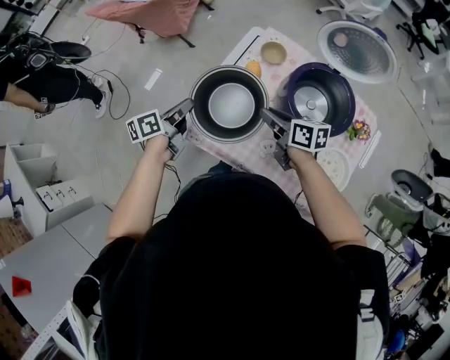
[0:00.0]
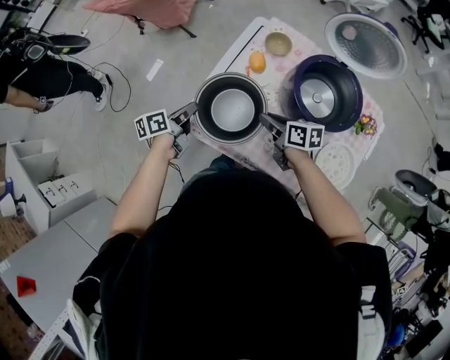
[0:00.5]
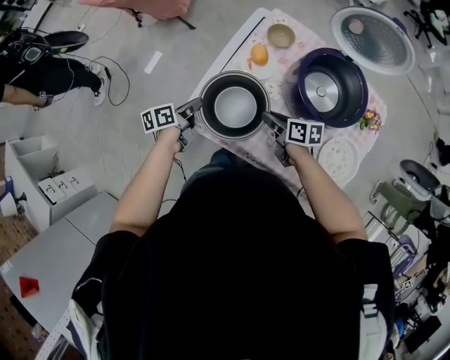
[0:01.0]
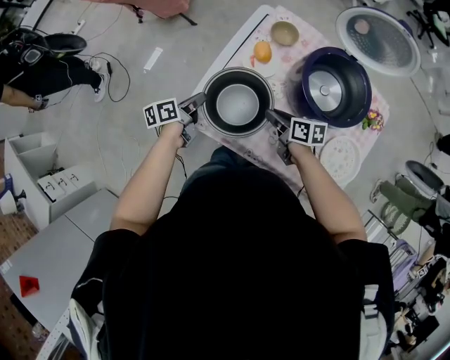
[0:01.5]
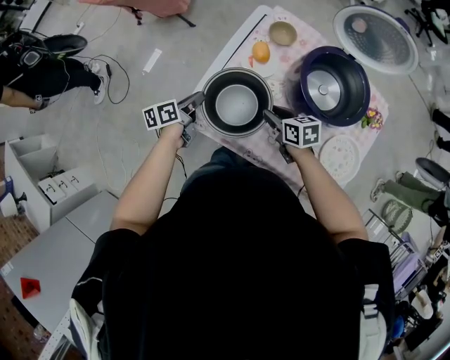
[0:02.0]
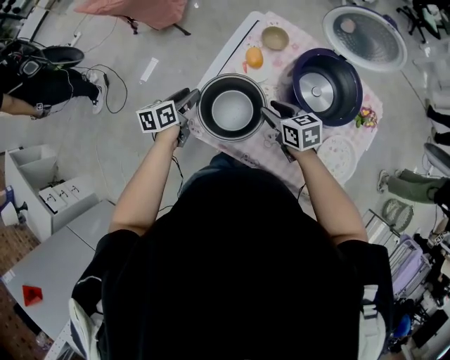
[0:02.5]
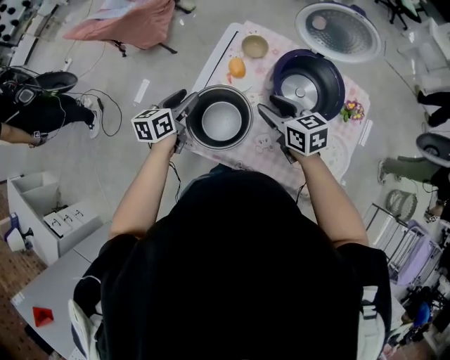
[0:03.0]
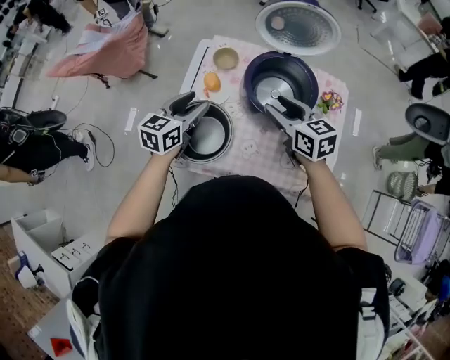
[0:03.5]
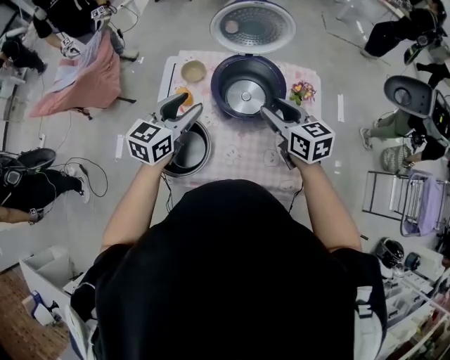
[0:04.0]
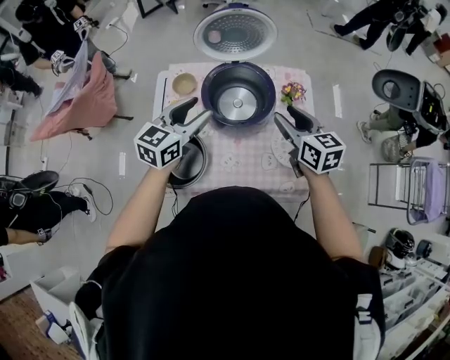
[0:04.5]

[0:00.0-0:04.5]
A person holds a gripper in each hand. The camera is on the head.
0:00.0 to 0:02.0: The two grippers go approximately 10 cm downward.
0:02.0 to 0:04.5: The right gripper ends up approximately 35 cm from where it was, and swivels approximately 50 degrees, while the left gripper shifts by about 40 cm, rolls clockwise, seen from behind, by approximately 60 degrees, and opens its fingers.

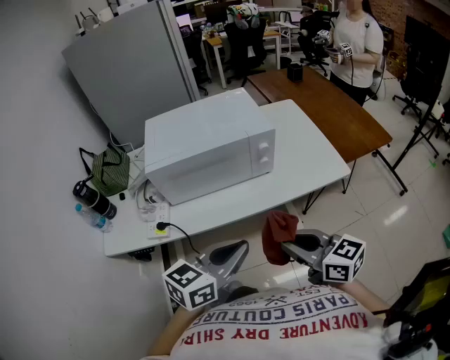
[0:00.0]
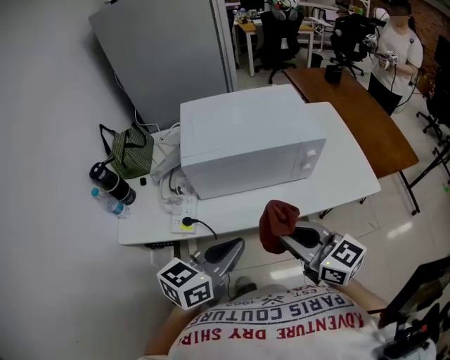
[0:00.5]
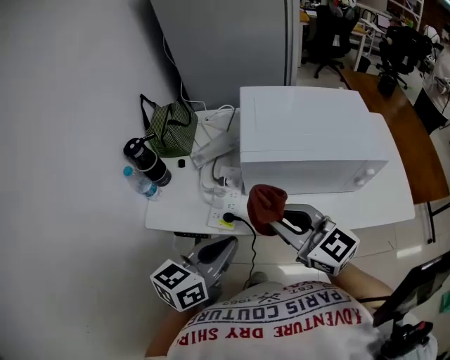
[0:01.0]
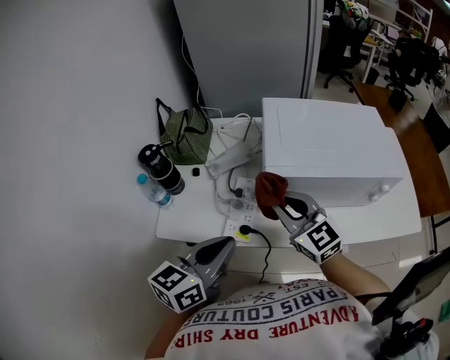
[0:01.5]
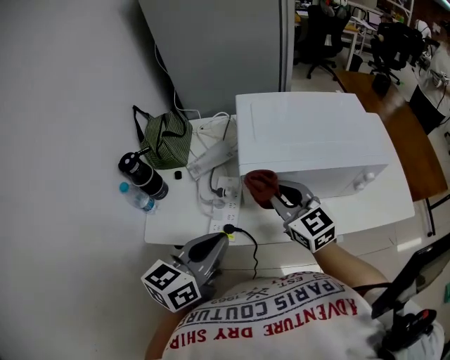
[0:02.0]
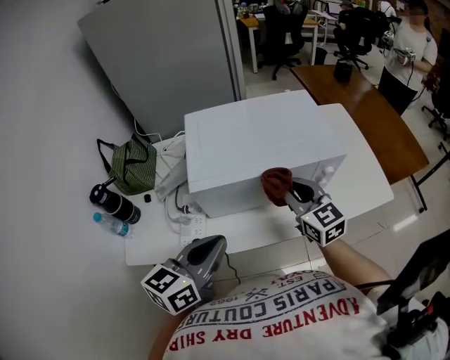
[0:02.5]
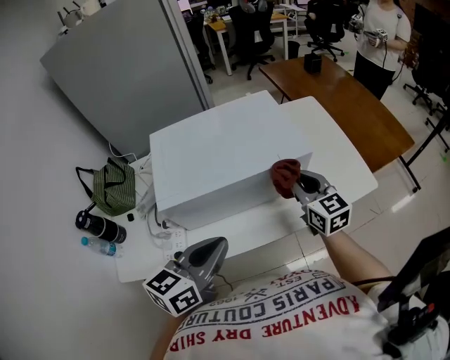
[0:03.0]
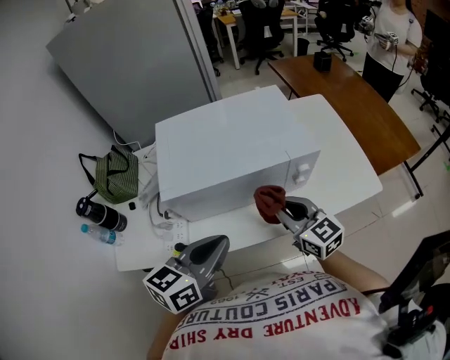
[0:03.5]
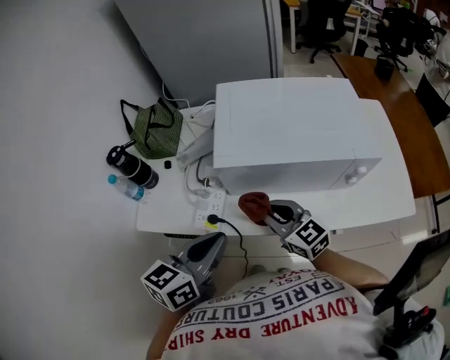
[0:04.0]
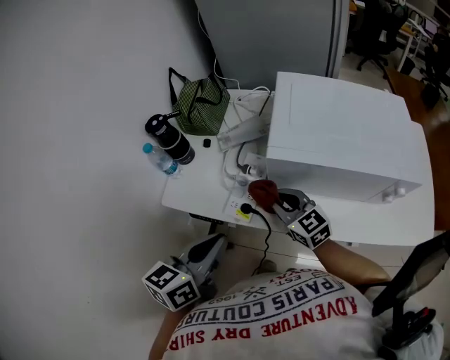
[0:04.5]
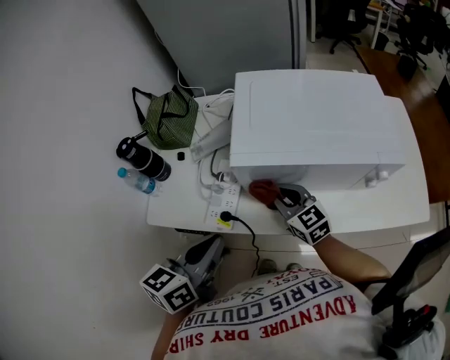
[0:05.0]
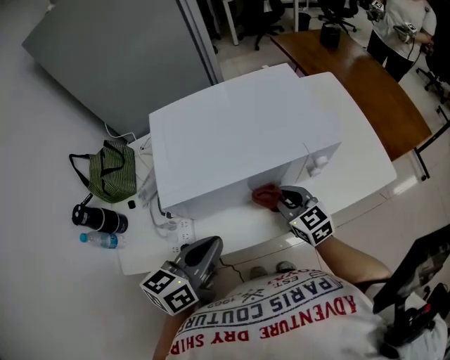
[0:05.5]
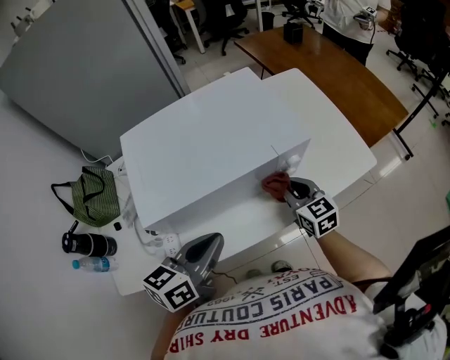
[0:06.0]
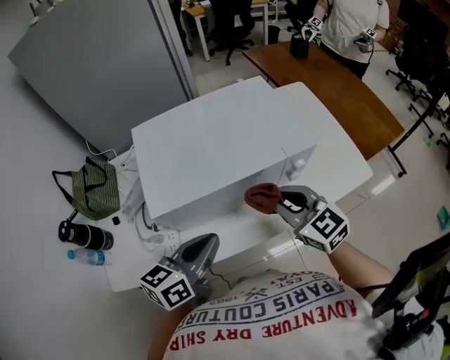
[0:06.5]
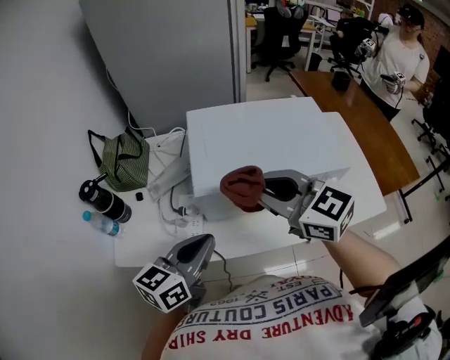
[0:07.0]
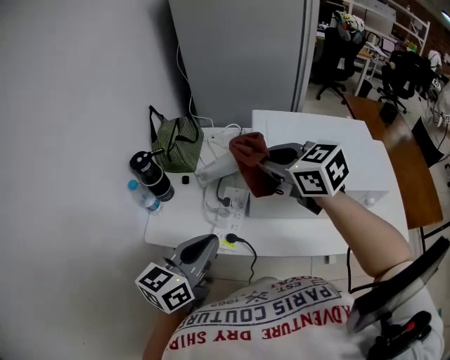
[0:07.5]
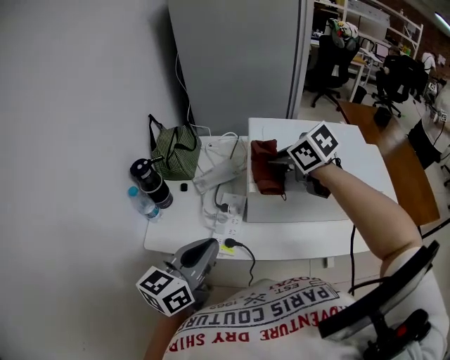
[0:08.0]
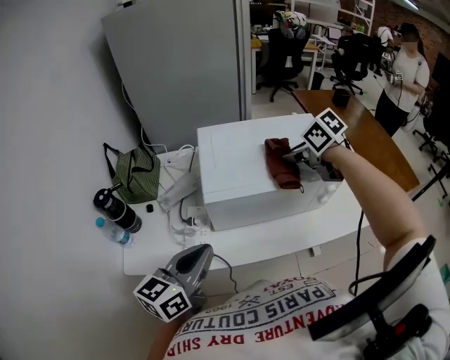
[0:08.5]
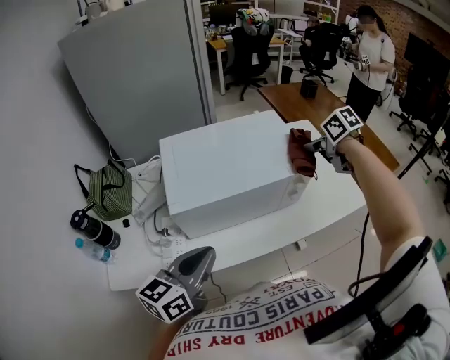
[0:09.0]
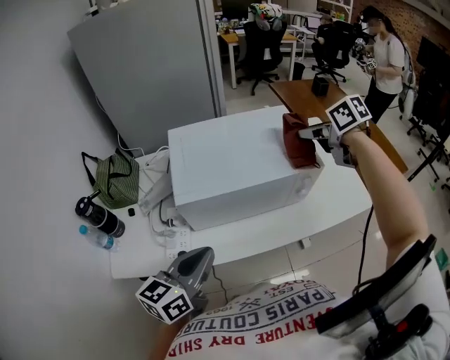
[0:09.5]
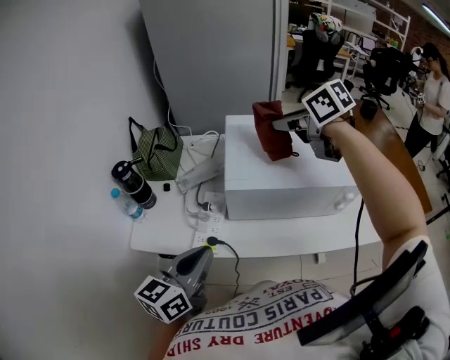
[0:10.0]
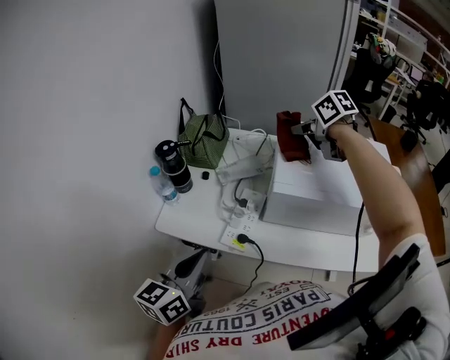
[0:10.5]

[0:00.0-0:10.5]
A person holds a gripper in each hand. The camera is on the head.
0:00.0 to 0:02.0: The right gripper shifts about 40 cm forward and to the left, and changes its angle by some 20 degrees. Meanwhile the left gripper shifts some 30 cm to the left and forward, and changes its angle by roughly 20 degrees.
0:02.0 to 0:04.0: The right gripper goes some 10 cm downward.
0:04.0 to 0:06.5: The left gripper changes place by some 15 cm, and rotates approximately 20 degrees. Meanwhile the right gripper moves approximately 20 cm, and rotates about 20 degrees.
0:06.5 to 0:08.5: The right gripper swivels roughly 40 degrees.
0:08.5 to 0:10.5: The right gripper goes upward and returns, roughly 10 cm each way. Meanwhile the left gripper shifts by roughly 15 cm, and changes its angle by some 30 degrees.

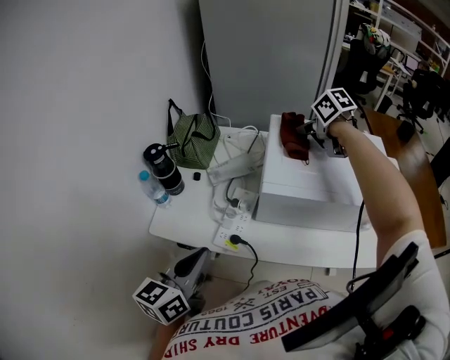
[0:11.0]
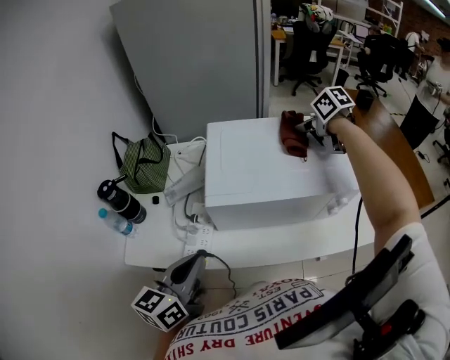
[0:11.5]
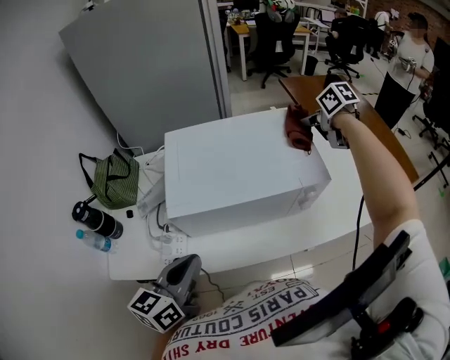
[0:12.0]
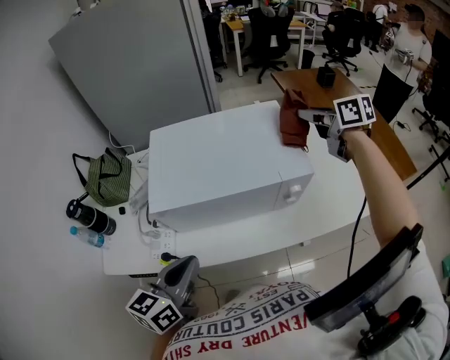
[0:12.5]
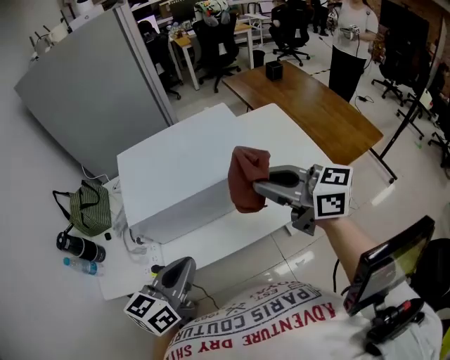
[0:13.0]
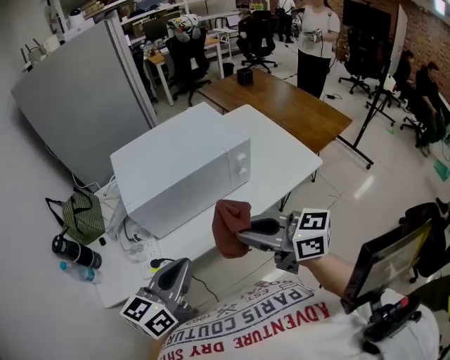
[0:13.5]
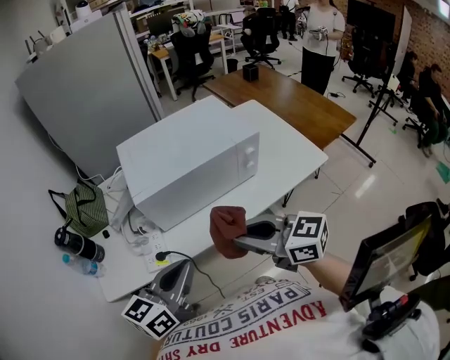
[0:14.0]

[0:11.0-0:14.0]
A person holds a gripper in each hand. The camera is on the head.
0:11.0 to 0:12.5: The left gripper shifts roughly 20 cm to the right. The right gripper goes approximately 35 cm to the right, and changes its angle by approximately 40 degrees.
0:12.5 to 0:14.0: The left gripper is displaced backward by roughly 10 cm, and turns by approximately 20 degrees. The right gripper shifts roughly 50 cm backward and to the left.

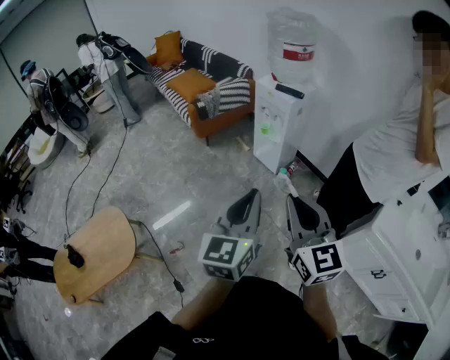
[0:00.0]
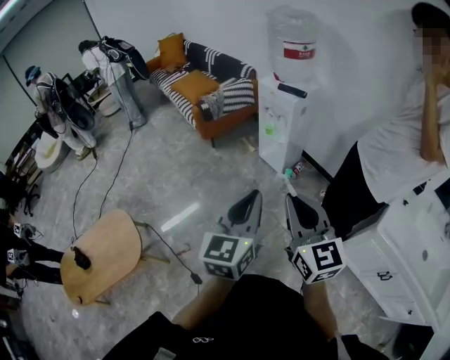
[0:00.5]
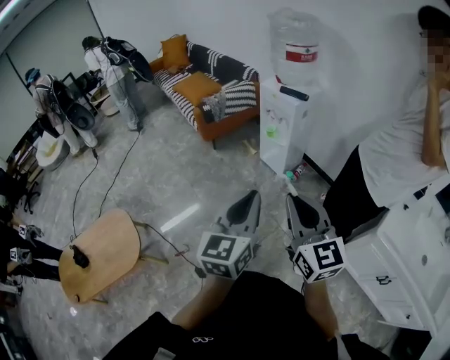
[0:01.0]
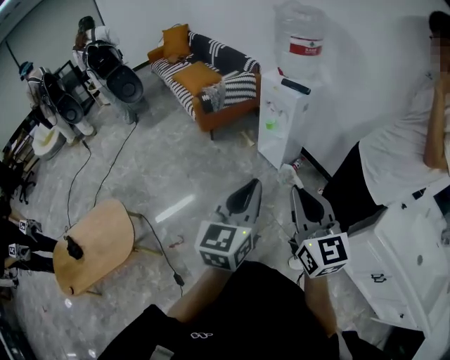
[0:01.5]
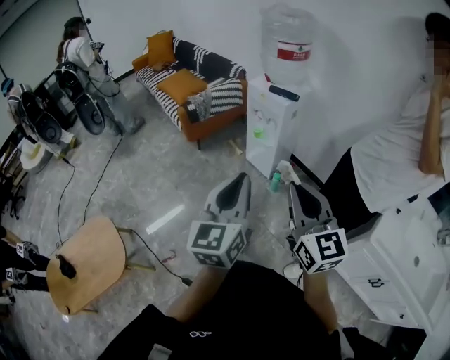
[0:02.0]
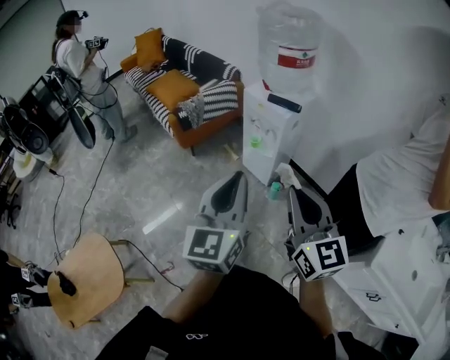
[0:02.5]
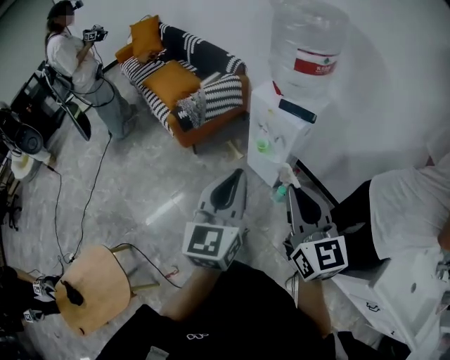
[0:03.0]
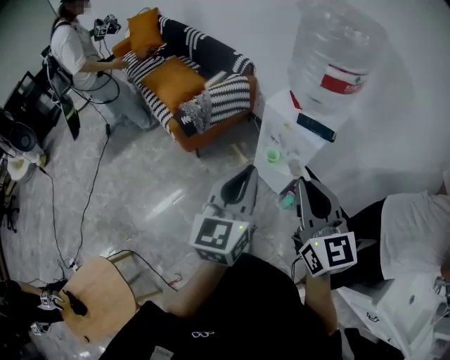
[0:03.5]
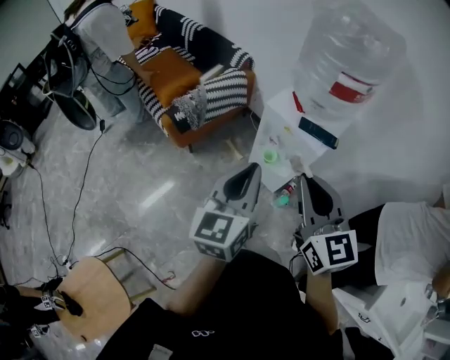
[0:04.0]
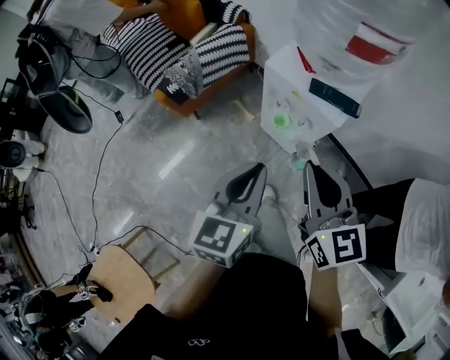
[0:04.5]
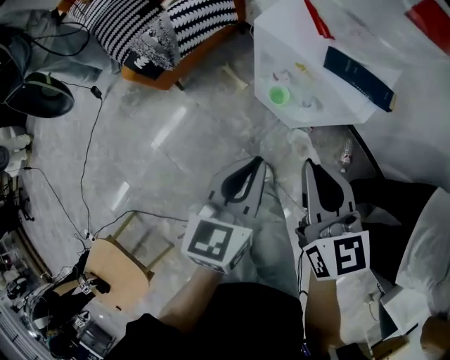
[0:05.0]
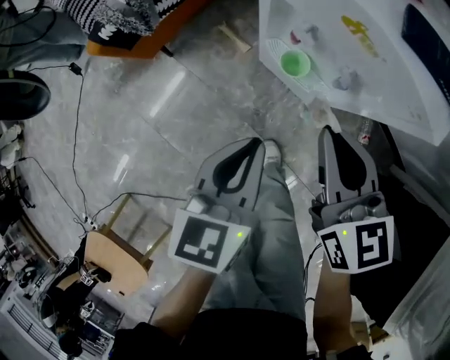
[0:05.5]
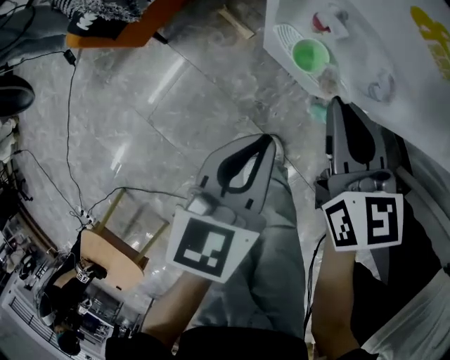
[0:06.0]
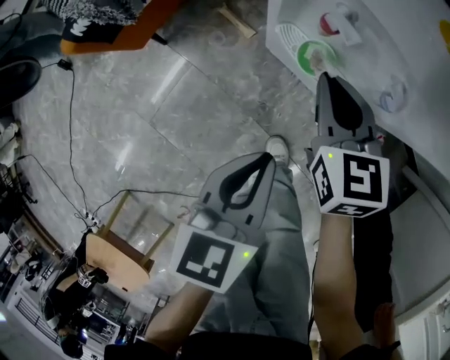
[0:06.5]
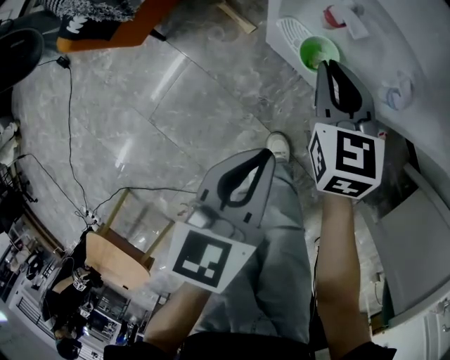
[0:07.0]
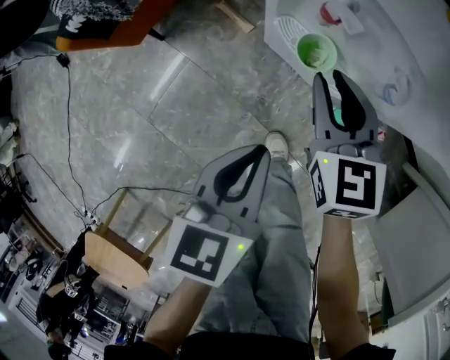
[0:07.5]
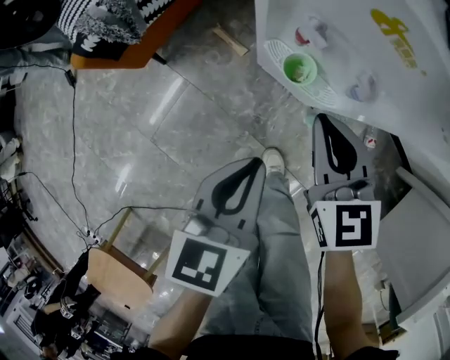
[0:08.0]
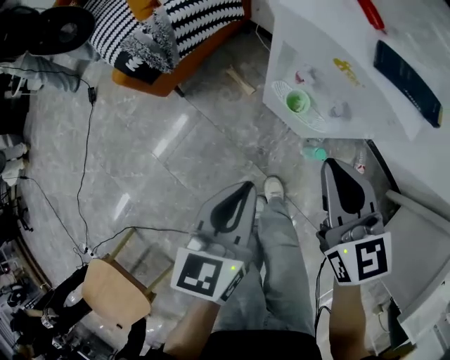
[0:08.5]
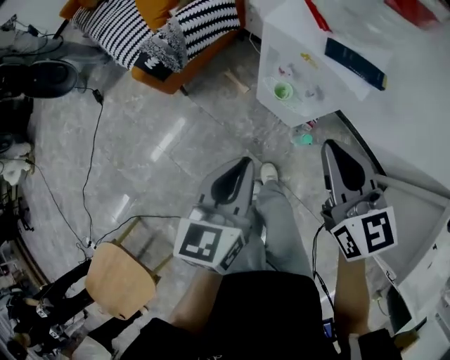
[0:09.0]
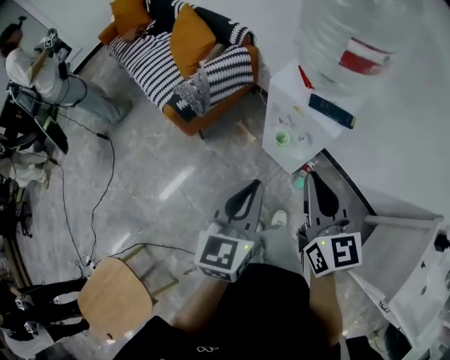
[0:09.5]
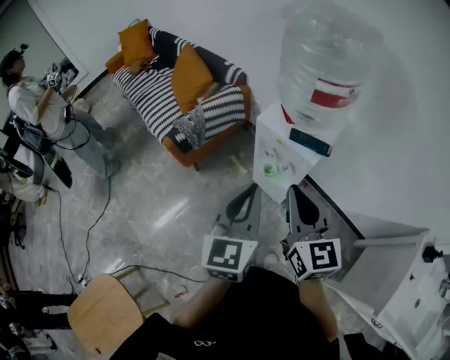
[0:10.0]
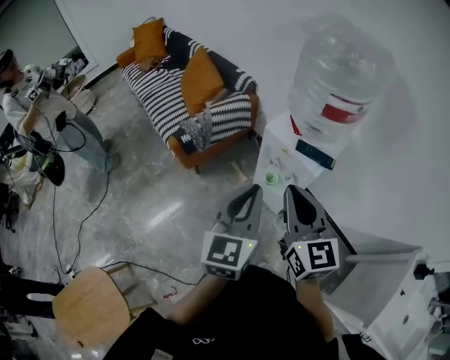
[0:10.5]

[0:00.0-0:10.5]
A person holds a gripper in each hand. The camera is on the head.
0:00.0 to 0:02.0: The grippers both shift forward by about 10 cm.
0:02.0 to 0:04.0: The two grippers travel together, forward, approximately 40 cm.
0:04.0 to 0:06.5: The right gripper heads downward and forward, covering about 60 cm, and changes its angle by approximately 30 degrees. Meanwhile the left gripper moves downward, roughly 40 cm, and angles its fingers downward, by some 30 degrees.
0:06.5 to 0:08.5: The left gripper shifts approximately 15 cm upward. Meanwhile the right gripper travels upward and backward by roughly 25 cm, and opens, then closes again.
0:08.5 to 0:10.5: Both grippers travel together upward, approximately 30 cm. The right gripper changes its angle by about 20 degrees; the left gripper changes its angle by approximately 30 degrees.
